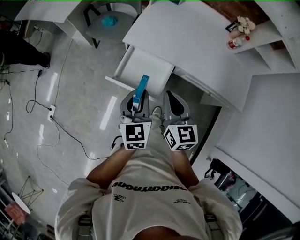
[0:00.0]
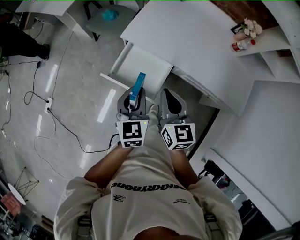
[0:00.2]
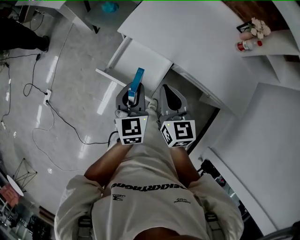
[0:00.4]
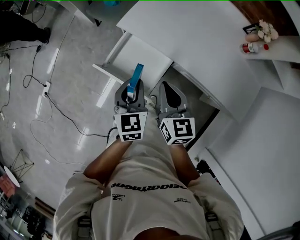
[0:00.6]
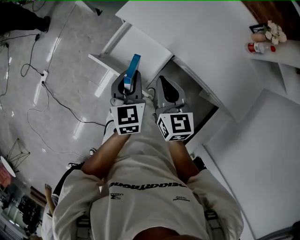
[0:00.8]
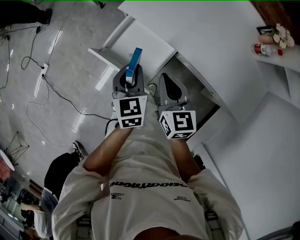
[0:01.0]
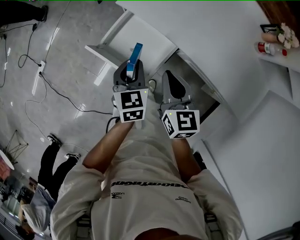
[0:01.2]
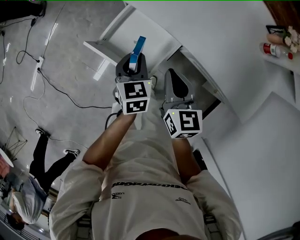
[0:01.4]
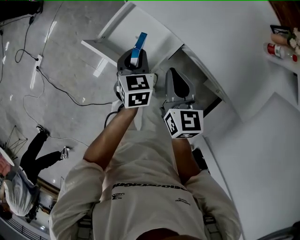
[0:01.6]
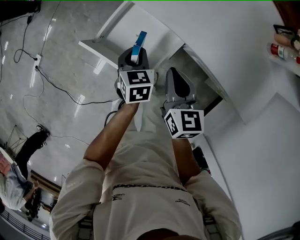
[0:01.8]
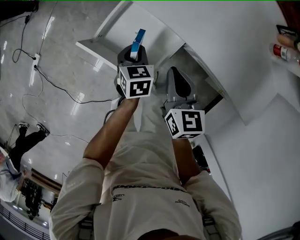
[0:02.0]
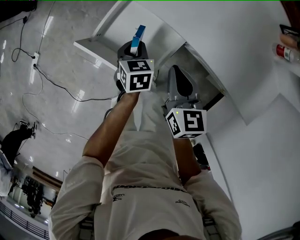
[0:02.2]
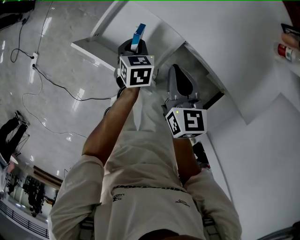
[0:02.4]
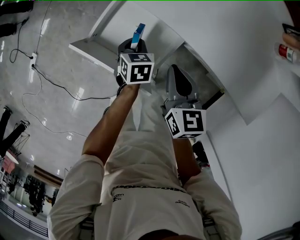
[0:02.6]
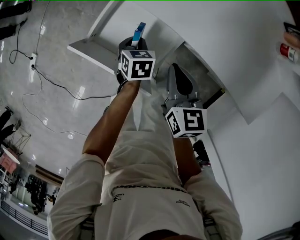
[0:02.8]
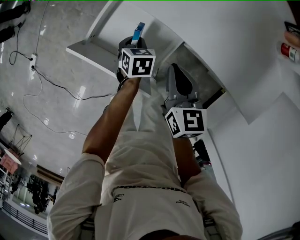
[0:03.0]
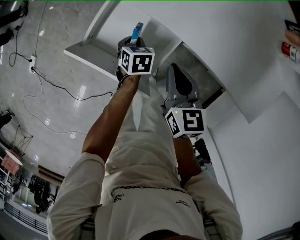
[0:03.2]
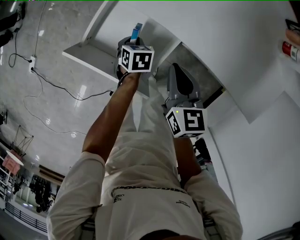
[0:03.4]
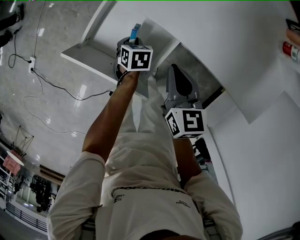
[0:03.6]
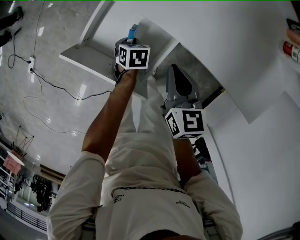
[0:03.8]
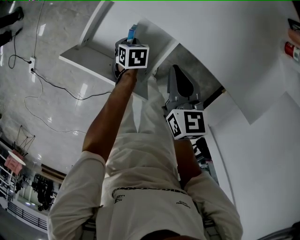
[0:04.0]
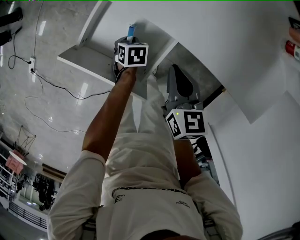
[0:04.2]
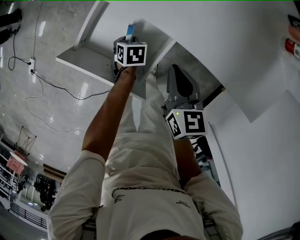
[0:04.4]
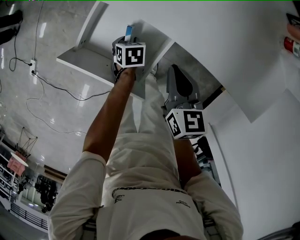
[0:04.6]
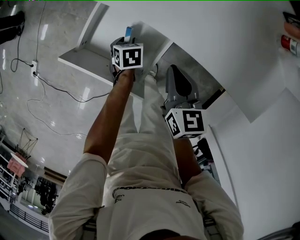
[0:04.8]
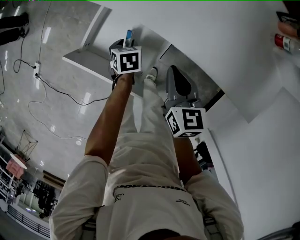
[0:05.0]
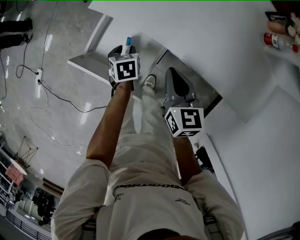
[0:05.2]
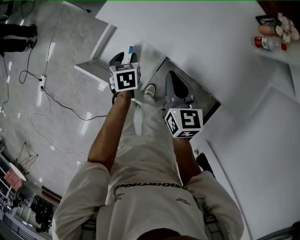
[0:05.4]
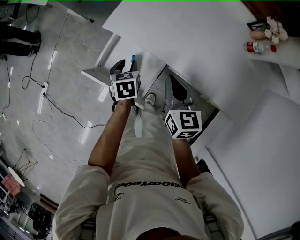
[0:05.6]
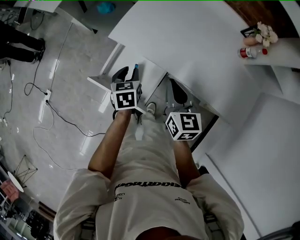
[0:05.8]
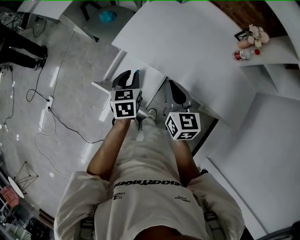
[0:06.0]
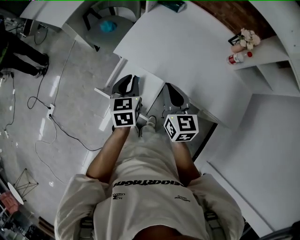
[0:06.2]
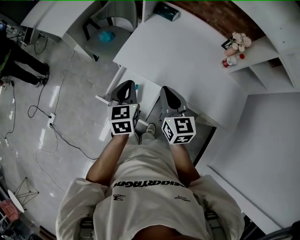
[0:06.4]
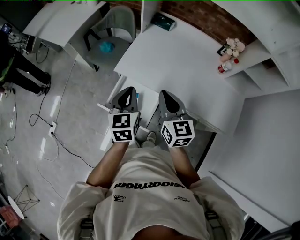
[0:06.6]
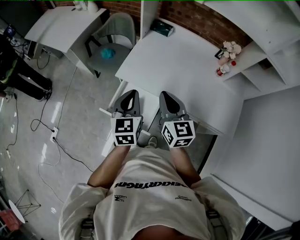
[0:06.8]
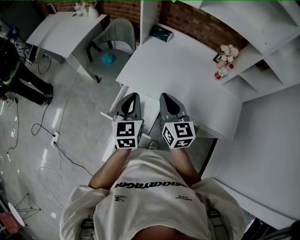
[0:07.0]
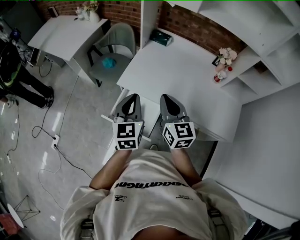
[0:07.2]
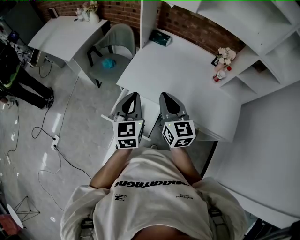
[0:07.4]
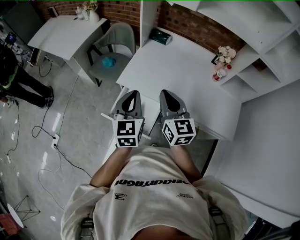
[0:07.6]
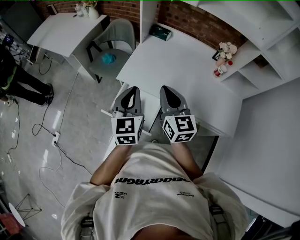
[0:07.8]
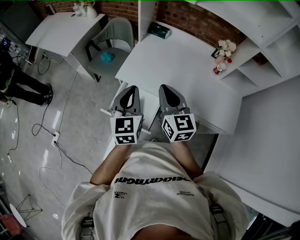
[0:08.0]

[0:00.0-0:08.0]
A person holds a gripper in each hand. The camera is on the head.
0:00.0 to 0:01.6: The grippers both shift downward by roughly 20 cm. The left gripper turns by some 30 degrees.
0:01.6 to 0:03.2: The left gripper heads downward, covering about 20 cm, and changes its angle by some 20 degrees. Meanwhile the right gripper shifts some 10 cm downward.
0:03.2 to 0:04.8: The left gripper opens its fingers.
0:04.8 to 0:06.4: The left gripper goes some 50 cm upward, tips its fingers upward by approximately 40 degrees, and closes its fingers, while the right gripper goes about 30 cm upward, and swivels approximately 20 degrees.
0:06.4 to 0:08.0: The two grippers go about 10 cm upward.

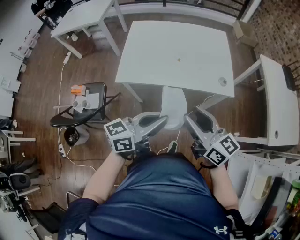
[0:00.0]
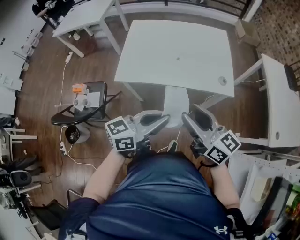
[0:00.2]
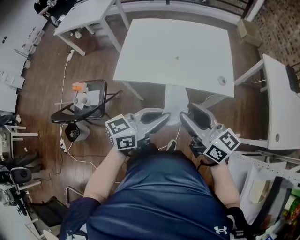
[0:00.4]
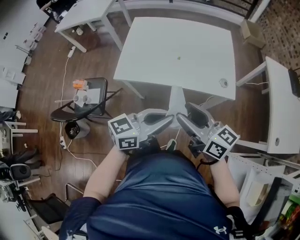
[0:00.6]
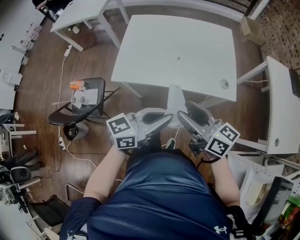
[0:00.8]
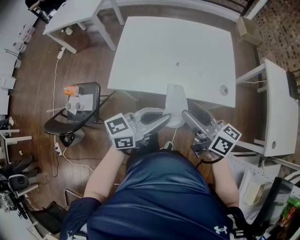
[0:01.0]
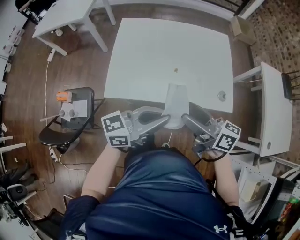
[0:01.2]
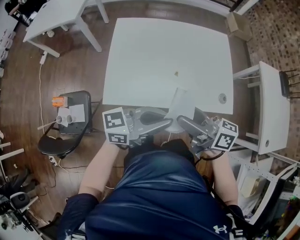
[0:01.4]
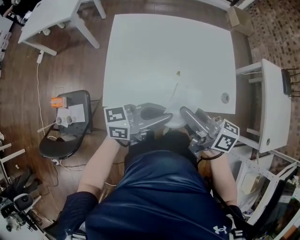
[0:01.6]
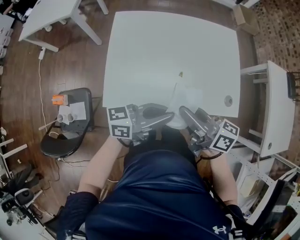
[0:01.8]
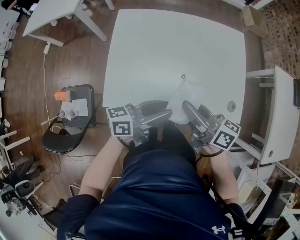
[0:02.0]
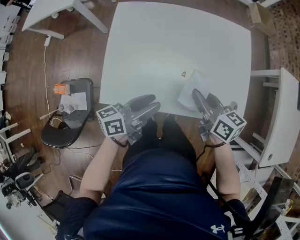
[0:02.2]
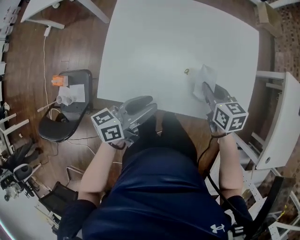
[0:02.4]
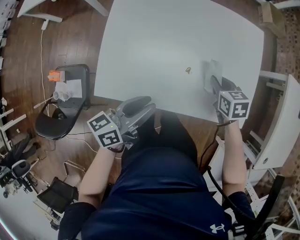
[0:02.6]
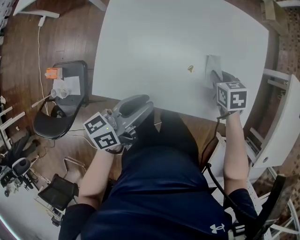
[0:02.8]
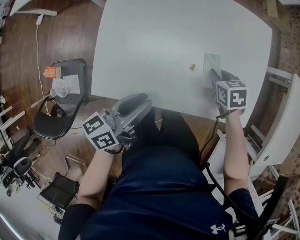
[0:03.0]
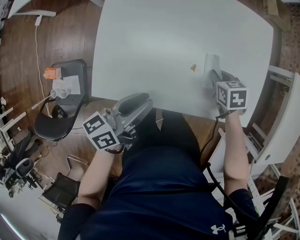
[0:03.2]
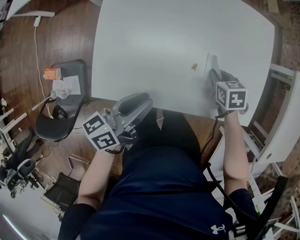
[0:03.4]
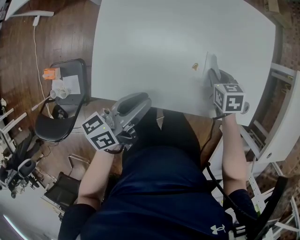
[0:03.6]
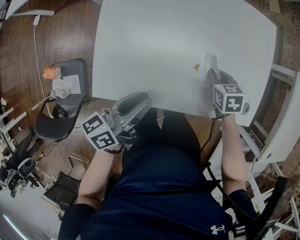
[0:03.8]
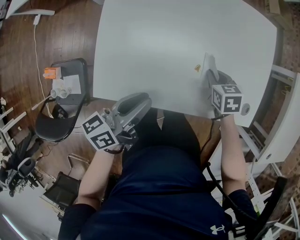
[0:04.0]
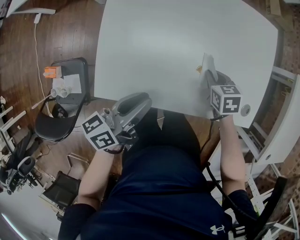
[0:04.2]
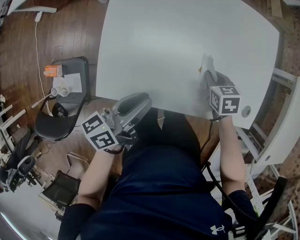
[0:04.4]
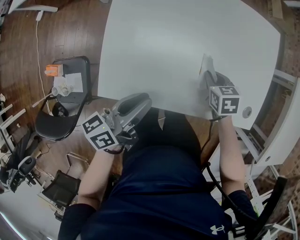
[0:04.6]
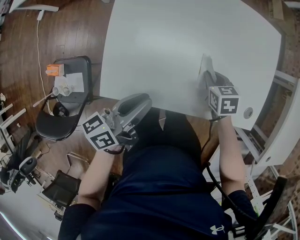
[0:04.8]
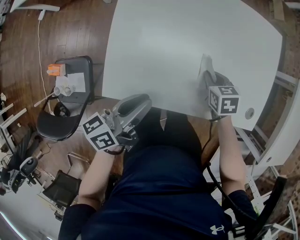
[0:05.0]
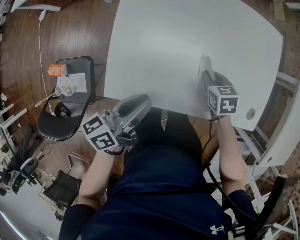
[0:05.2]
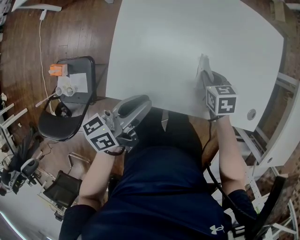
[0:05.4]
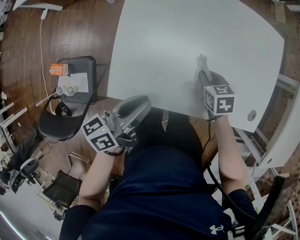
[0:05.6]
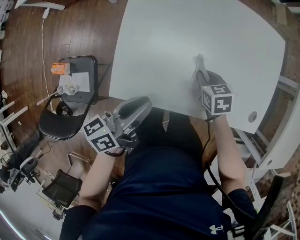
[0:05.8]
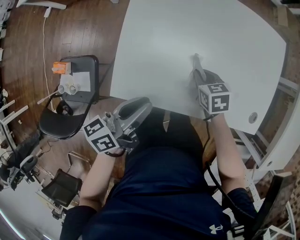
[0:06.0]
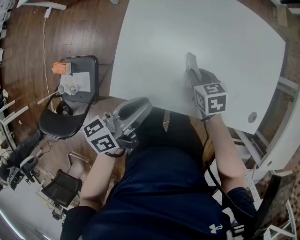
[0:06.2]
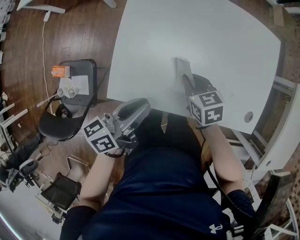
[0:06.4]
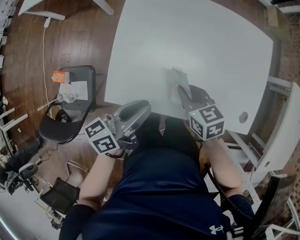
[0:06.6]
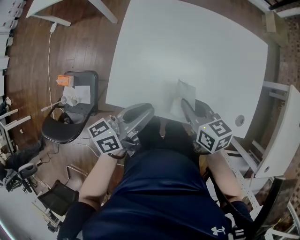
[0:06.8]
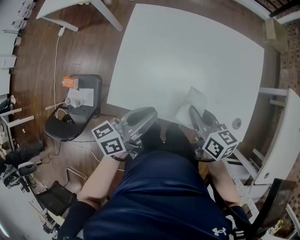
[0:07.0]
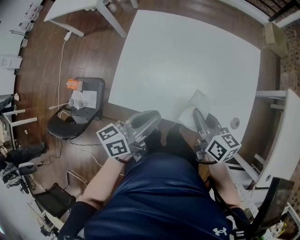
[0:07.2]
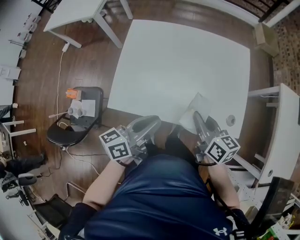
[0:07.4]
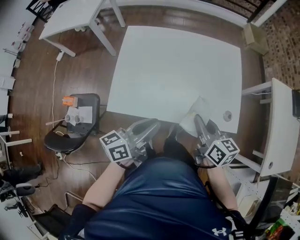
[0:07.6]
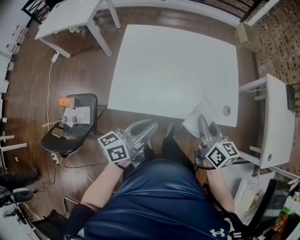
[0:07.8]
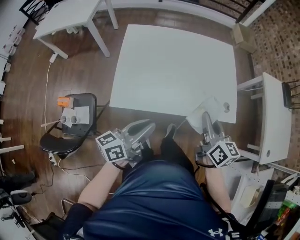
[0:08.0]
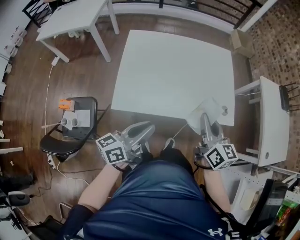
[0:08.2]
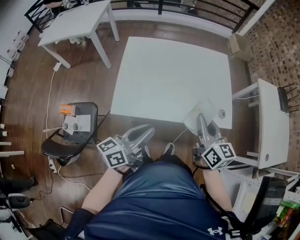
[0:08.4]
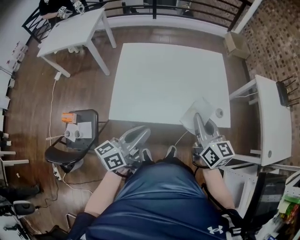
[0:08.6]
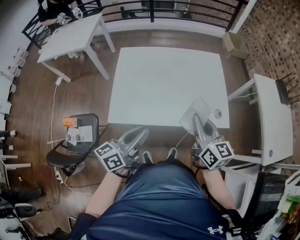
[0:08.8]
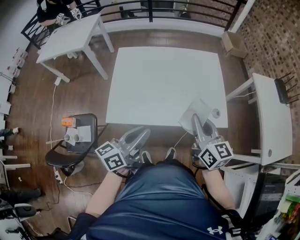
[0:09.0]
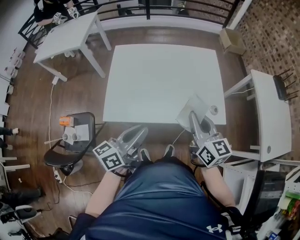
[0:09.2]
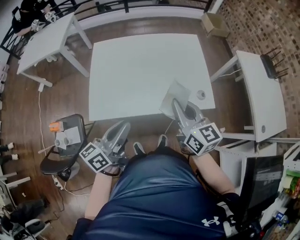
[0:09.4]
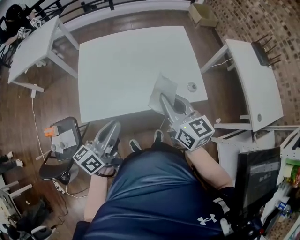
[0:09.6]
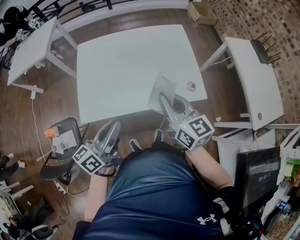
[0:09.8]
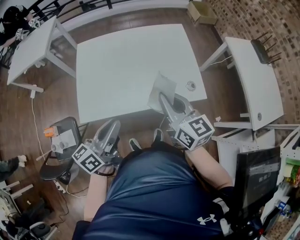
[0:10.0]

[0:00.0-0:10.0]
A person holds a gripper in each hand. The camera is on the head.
0:00.0 to 0:01.4: The right gripper moves some 20 cm, swivels some 30 degrees, and opens; the left gripper changes place by some 15 cm, and swivels roughly 20 degrees.
0:01.4 to 0:02.8: The left gripper is displaced downward by approximately 15 cm, rotates approximately 50 degrees, and opens; the right gripper shifts approximately 25 cm downward, points its fingers about 60 degrees further downward, and closes up.
0:02.8 to 0:04.2: The right gripper moves approximately 5 cm.
0:04.2 to 0:05.8: The right gripper goes some 10 cm to the left. Meanwhile the left gripper moves to the left, approximately 5 cm.
0:05.8 to 0:07.2: The left gripper goes some 15 cm to the right and upward. Meanwhile the right gripper heads upward and backward, covering roughly 20 cm, and angles its fingers upward, by approximately 40 degrees.
0:07.2 to 0:08.6: The left gripper moves backward and upward, approximately 10 cm. Meanwhile the right gripper shifts roughly 15 cm upward and backward, and changes its angle by approximately 30 degrees.
0:08.6 to 0:10.0: The grippers stay close to where they were, moving slightly.

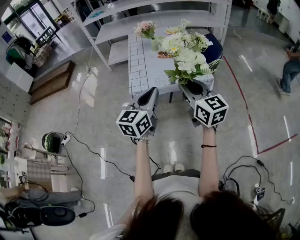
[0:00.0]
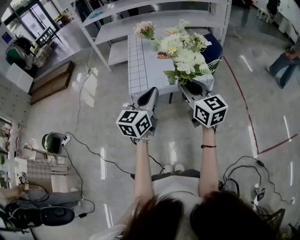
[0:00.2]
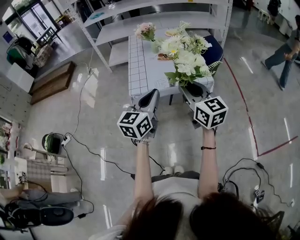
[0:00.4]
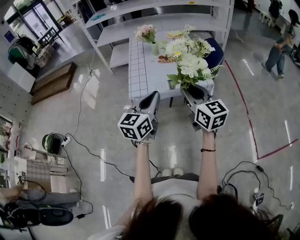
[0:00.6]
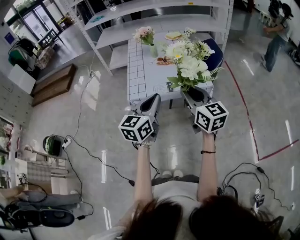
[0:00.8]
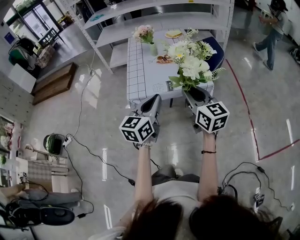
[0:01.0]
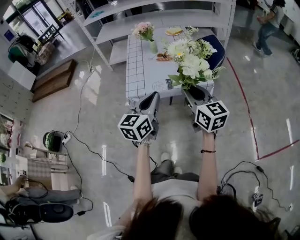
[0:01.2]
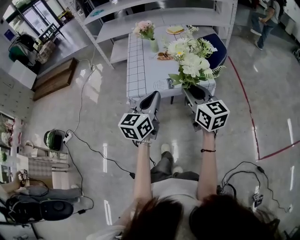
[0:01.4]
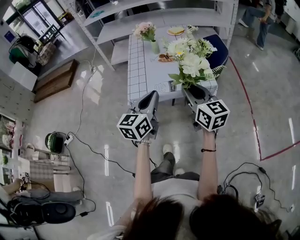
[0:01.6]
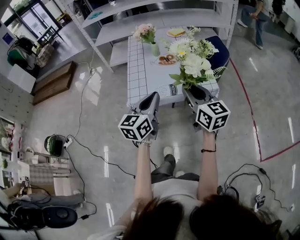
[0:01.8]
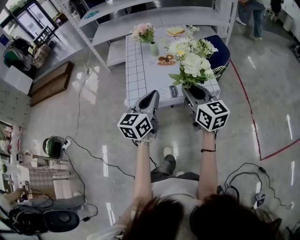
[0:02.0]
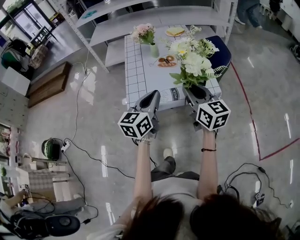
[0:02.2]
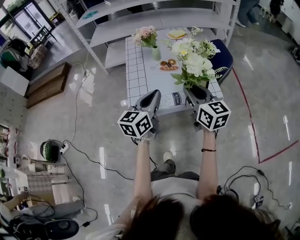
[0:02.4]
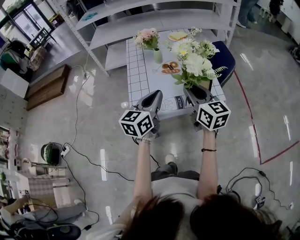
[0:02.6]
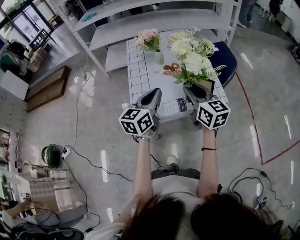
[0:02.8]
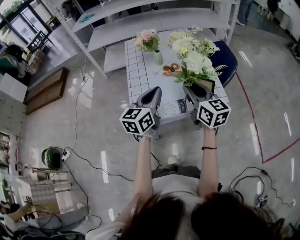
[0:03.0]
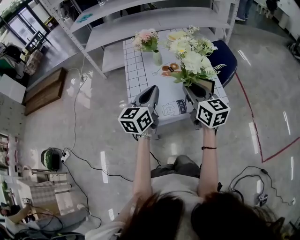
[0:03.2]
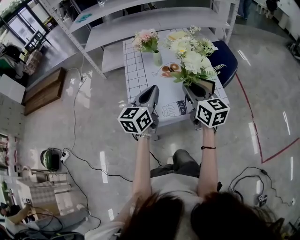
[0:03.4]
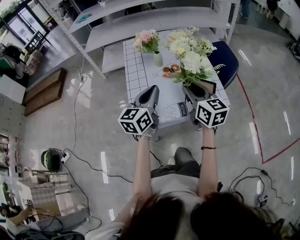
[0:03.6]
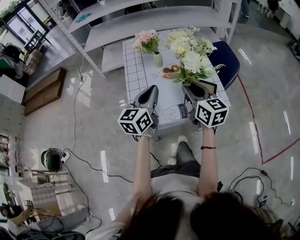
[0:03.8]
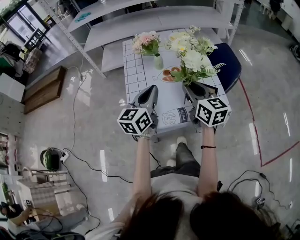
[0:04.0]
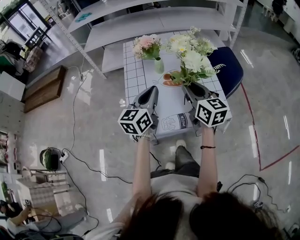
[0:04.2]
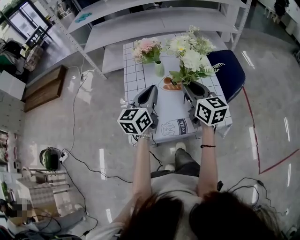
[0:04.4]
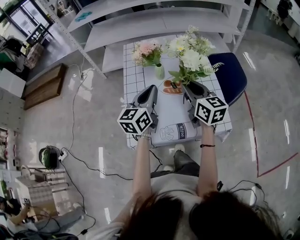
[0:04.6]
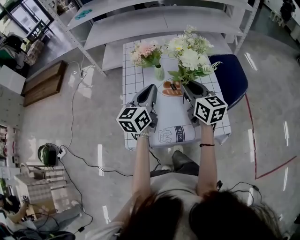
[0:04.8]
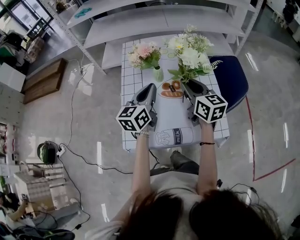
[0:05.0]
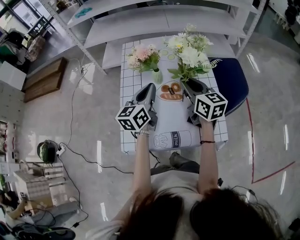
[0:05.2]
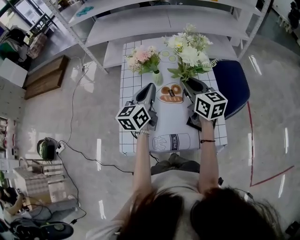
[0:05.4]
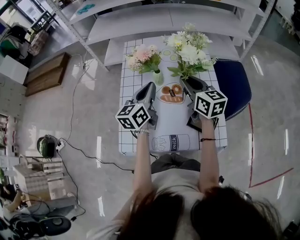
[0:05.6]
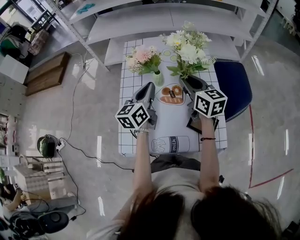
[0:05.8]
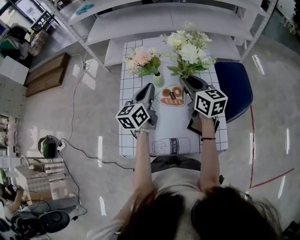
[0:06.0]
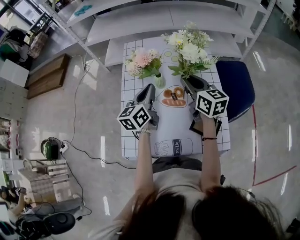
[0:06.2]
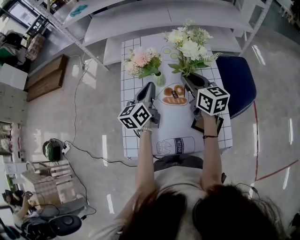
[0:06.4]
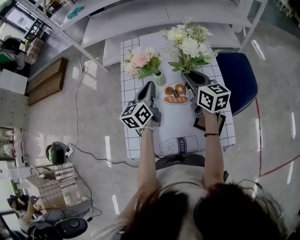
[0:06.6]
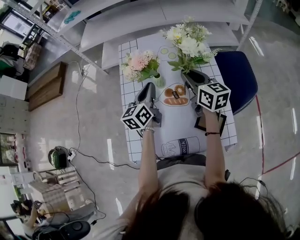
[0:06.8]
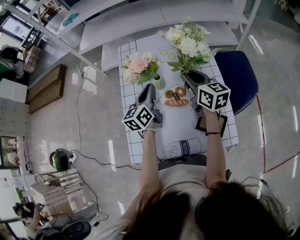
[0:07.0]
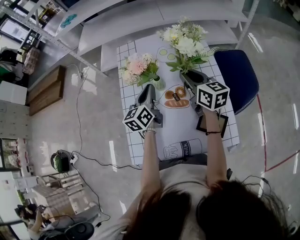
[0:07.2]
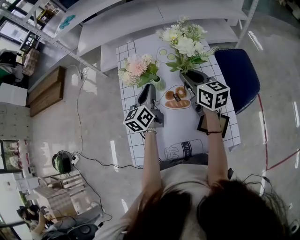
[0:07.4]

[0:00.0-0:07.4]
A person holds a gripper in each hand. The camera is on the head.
0:00.0 to 0:01.4: The right gripper shifts roughly 5 cm forward. The left gripper changes place by about 5 cm.
0:01.4 to 0:03.0: Both grippers travel together forward, about 20 cm.
0:03.0 to 0:04.4: Both grippers move forward, about 15 cm.
0:04.4 to 0:06.0: The grippers both shift forward by roughly 15 cm.
0:06.0 to 0:07.4: Both grippers travel together forward, about 5 cm.
